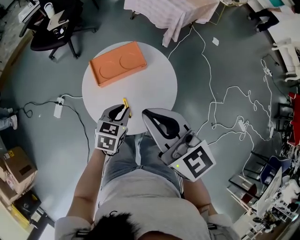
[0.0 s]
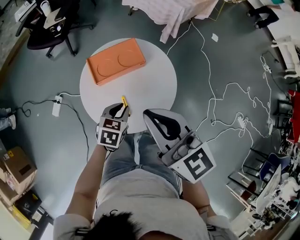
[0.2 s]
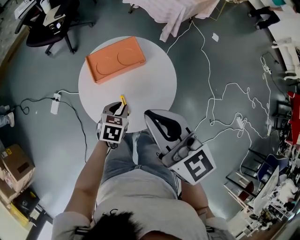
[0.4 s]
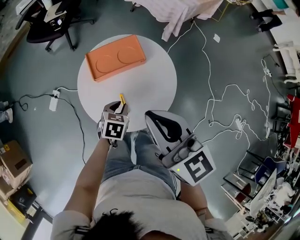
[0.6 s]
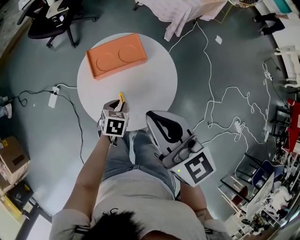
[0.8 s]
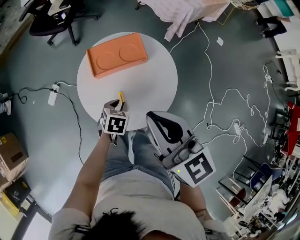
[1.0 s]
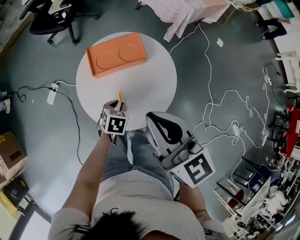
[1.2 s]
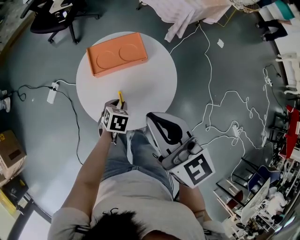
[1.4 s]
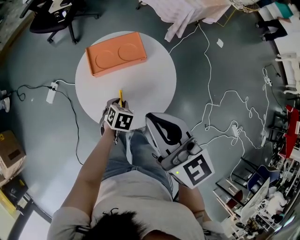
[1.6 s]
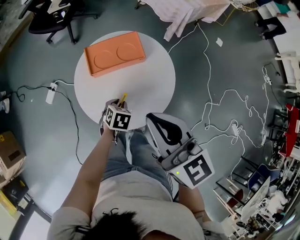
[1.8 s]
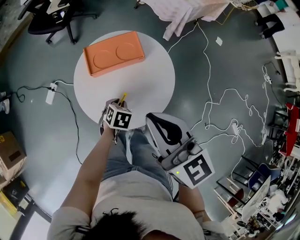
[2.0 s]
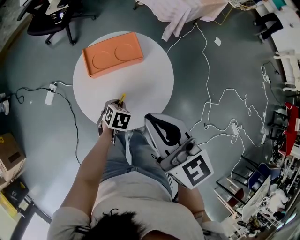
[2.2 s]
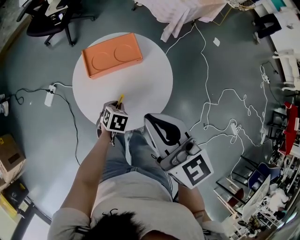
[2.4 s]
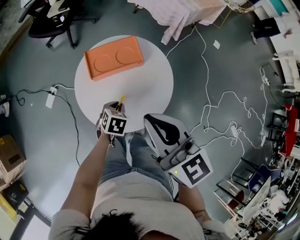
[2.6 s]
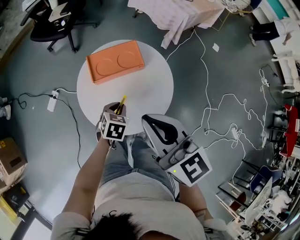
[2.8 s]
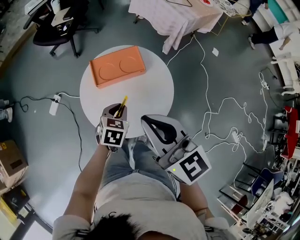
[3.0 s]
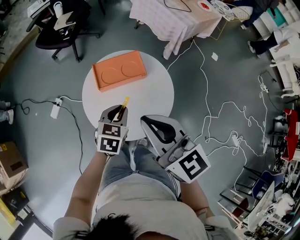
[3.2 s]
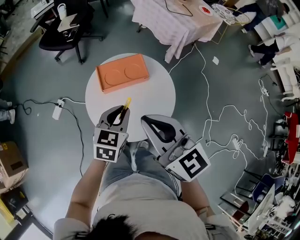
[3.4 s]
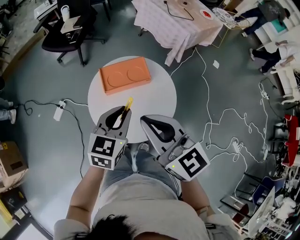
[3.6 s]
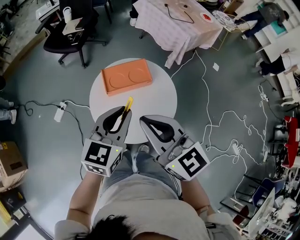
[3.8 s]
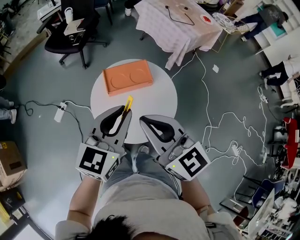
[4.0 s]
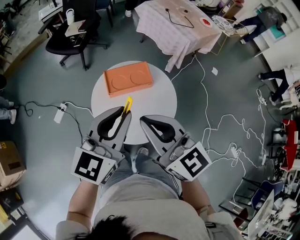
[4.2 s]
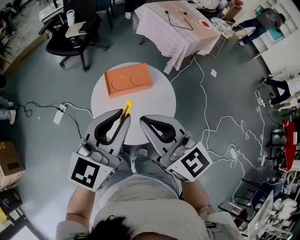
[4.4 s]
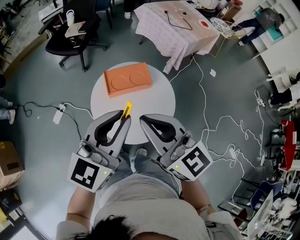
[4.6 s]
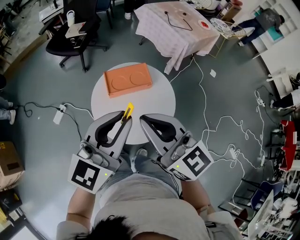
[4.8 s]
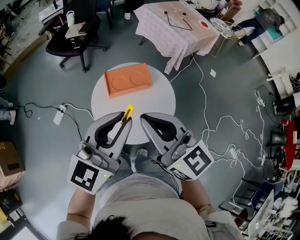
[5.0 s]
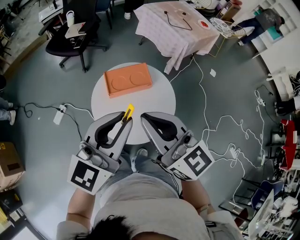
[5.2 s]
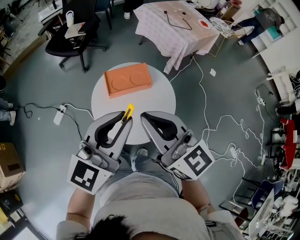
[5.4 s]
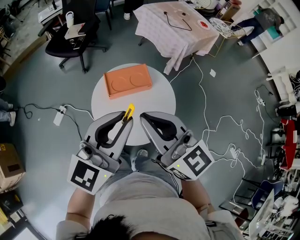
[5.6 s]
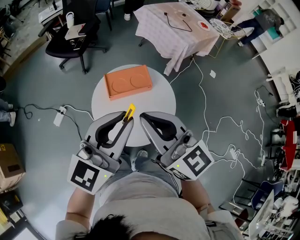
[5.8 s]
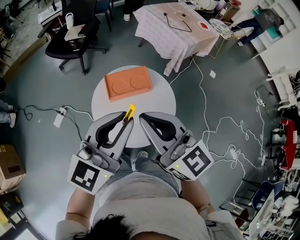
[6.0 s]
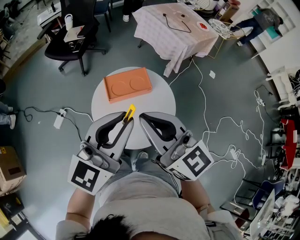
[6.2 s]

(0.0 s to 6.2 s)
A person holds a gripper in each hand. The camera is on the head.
0.0 s - 1.6 s: The left gripper goes roughly 10 cm downward, and turns by some 20 degrees.
1.6 s - 3.2 s: The left gripper goes some 15 cm upward, and changes its angle by roughly 20 degrees.
3.2 s - 4.6 s: The left gripper goes roughly 25 cm upward, and angles its fingers upward, by about 40 degrees; the right gripper shifts some 5 cm upward.
4.6 s - 6.2 s: The grippers stay close to where they were, moving slightly.

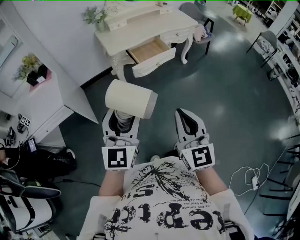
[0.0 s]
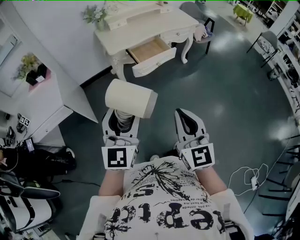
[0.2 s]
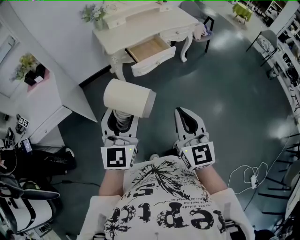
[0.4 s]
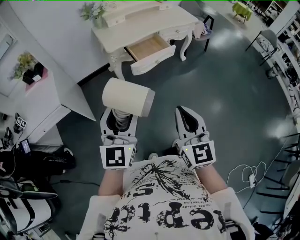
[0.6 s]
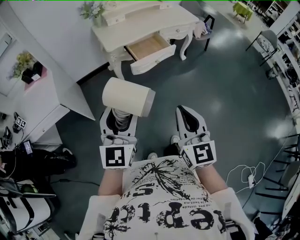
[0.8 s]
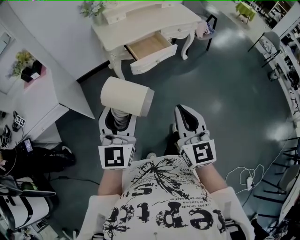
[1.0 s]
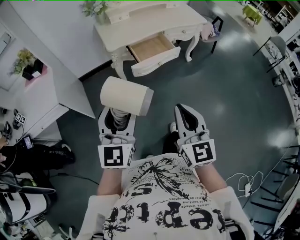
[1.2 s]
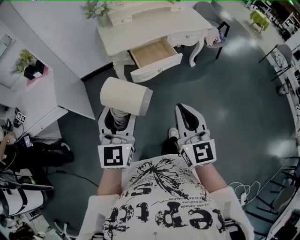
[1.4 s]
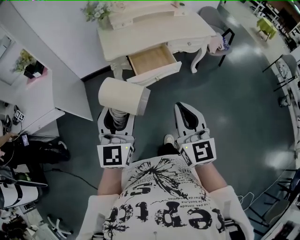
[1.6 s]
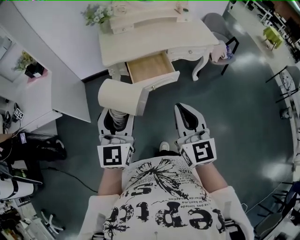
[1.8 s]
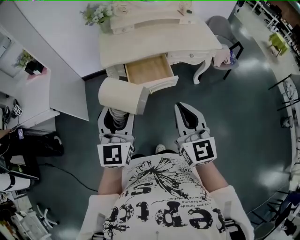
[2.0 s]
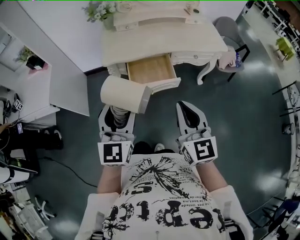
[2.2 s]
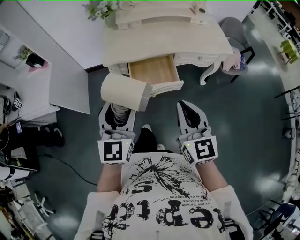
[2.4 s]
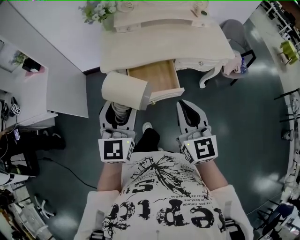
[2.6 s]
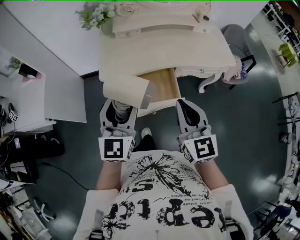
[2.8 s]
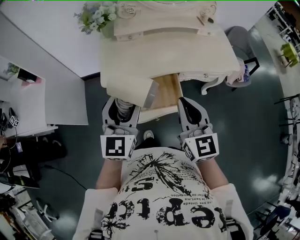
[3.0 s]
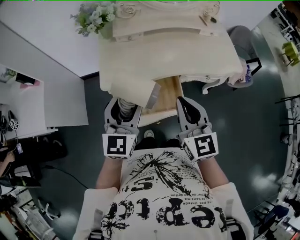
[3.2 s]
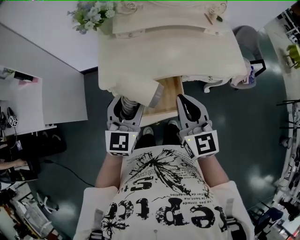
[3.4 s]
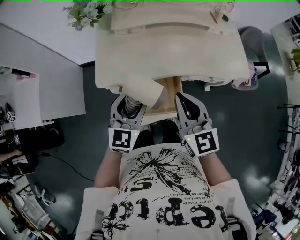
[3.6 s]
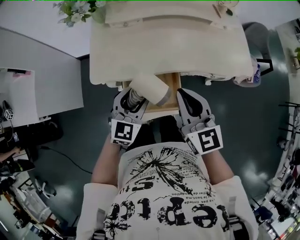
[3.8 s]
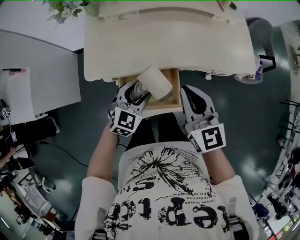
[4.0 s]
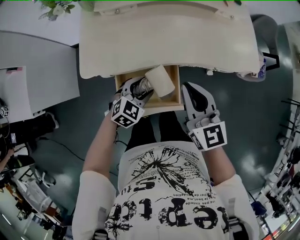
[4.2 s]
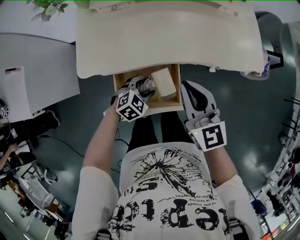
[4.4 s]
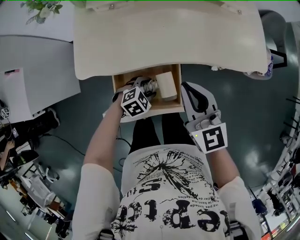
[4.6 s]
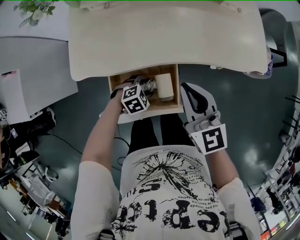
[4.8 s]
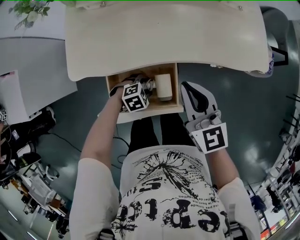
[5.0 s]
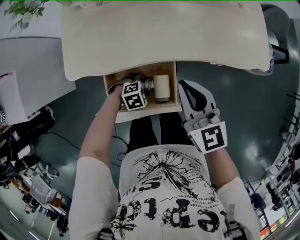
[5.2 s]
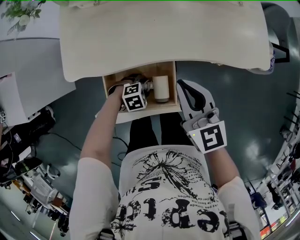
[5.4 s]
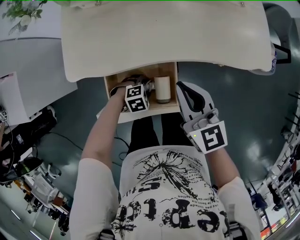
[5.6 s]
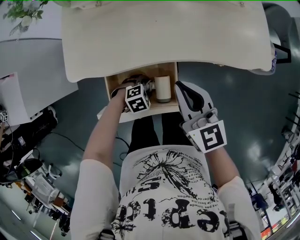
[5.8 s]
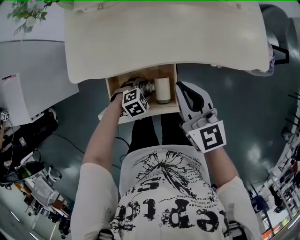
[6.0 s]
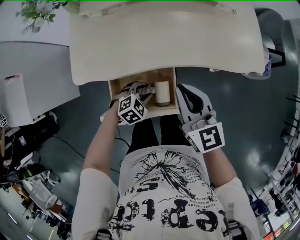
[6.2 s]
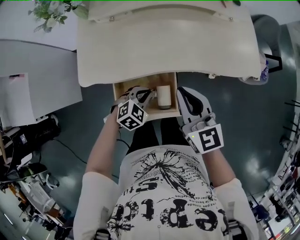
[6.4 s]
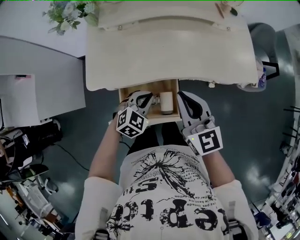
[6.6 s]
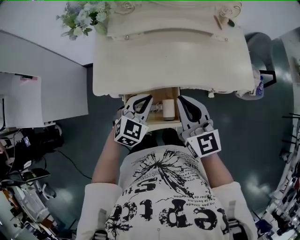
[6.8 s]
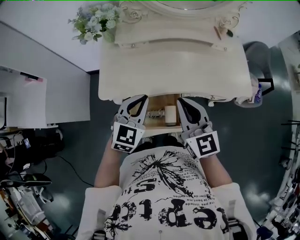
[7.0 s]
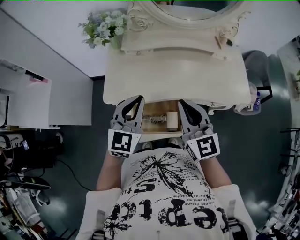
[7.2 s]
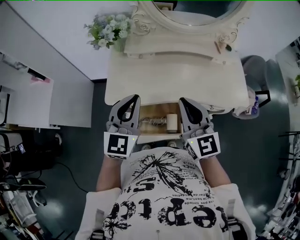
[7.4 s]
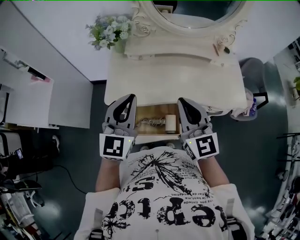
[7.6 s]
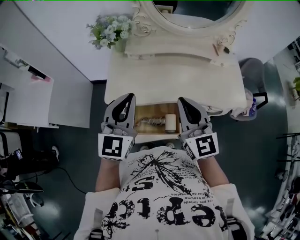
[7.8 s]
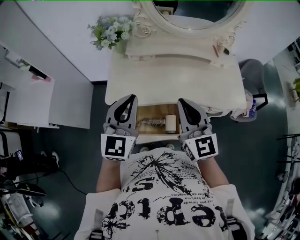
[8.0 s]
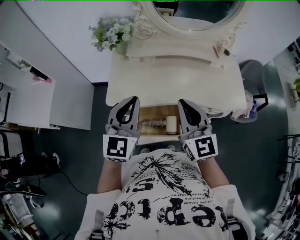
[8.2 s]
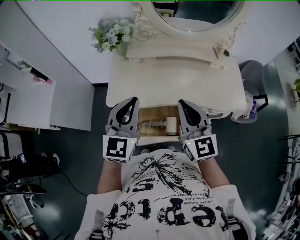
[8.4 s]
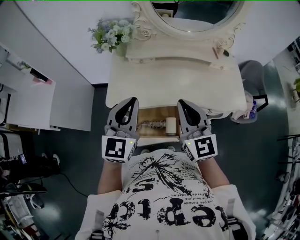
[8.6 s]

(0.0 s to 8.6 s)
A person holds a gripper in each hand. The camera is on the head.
0.0 s - 1.4 s: The two grippers go some 15 cm forward.
1.4 s - 2.8 s: The two grippers go approximately 35 cm forward and to the right.
2.8 s - 4.4 s: The left gripper is displaced downward and forward by approximately 35 cm, and tilts its fingers some 50 degrees downward, while the right gripper heads forward and downward, covering approximately 25 cm.
4.4 s - 5.8 s: The left gripper travels downward by approximately 10 cm, and rotates some 30 degrees; the right gripper is displaced downward by approximately 5 cm.
5.8 s - 7.2 s: The right gripper moves upward, roughly 15 cm. Meanwhile the left gripper moves upward, approximately 40 cm, points its fingers approximately 60 degrees further upward, and closes its fingers.
7.2 s - 8.6 s: The left gripper heads upward, covering approximately 5 cm.

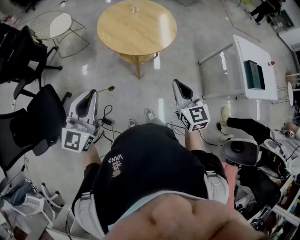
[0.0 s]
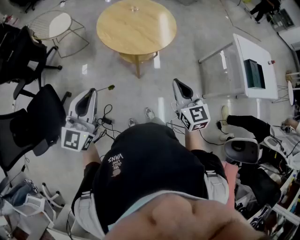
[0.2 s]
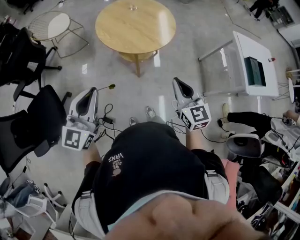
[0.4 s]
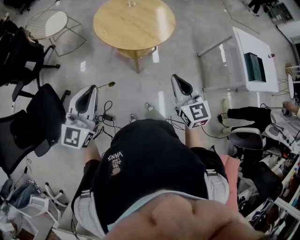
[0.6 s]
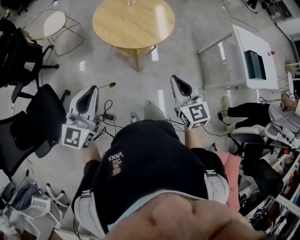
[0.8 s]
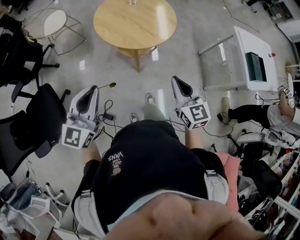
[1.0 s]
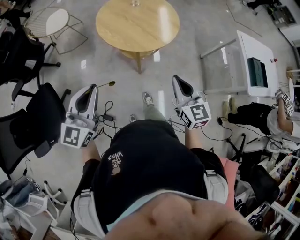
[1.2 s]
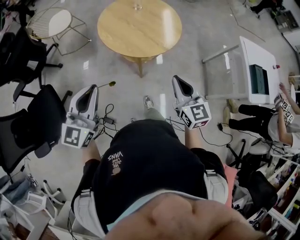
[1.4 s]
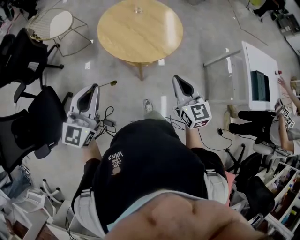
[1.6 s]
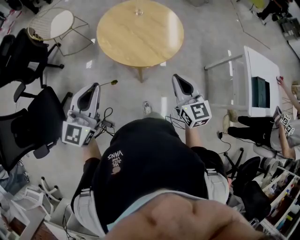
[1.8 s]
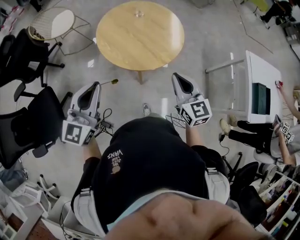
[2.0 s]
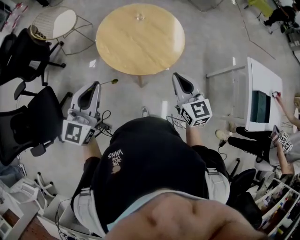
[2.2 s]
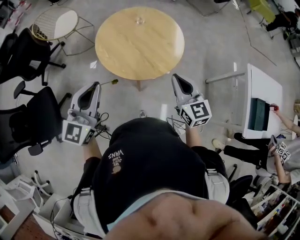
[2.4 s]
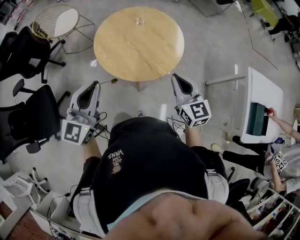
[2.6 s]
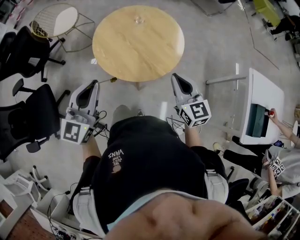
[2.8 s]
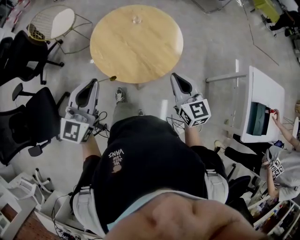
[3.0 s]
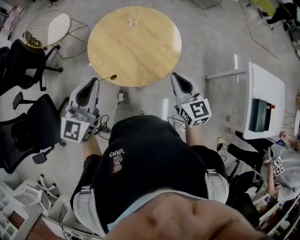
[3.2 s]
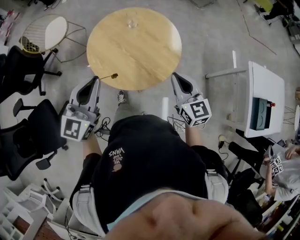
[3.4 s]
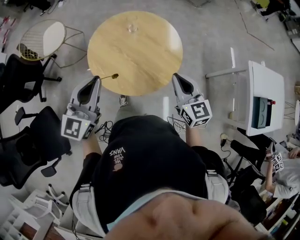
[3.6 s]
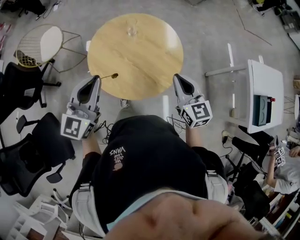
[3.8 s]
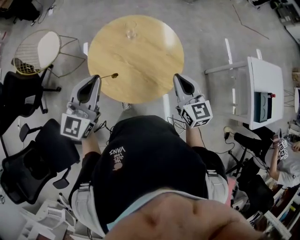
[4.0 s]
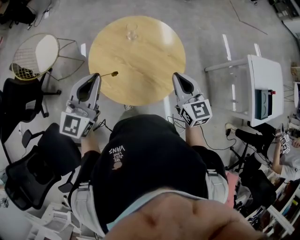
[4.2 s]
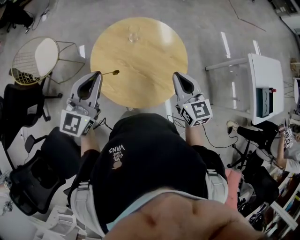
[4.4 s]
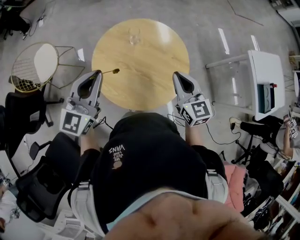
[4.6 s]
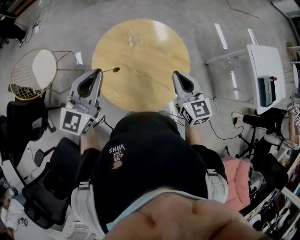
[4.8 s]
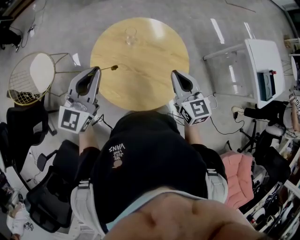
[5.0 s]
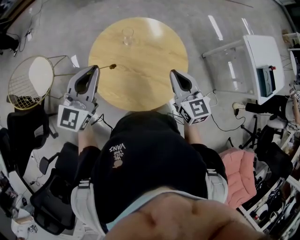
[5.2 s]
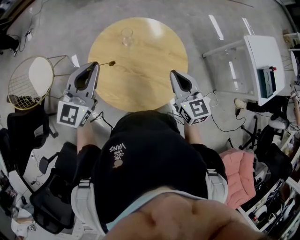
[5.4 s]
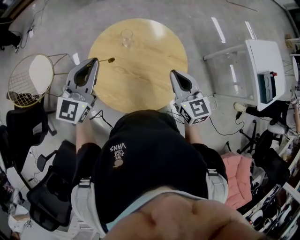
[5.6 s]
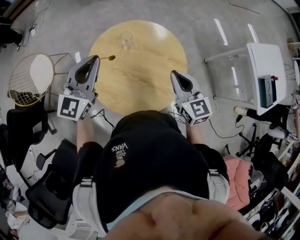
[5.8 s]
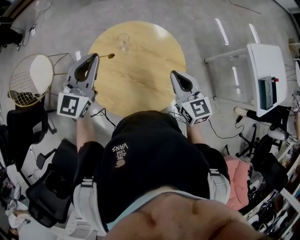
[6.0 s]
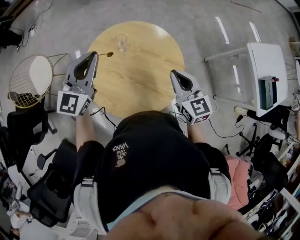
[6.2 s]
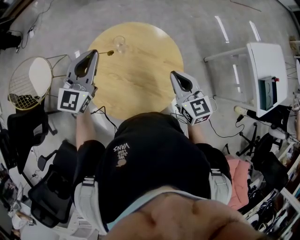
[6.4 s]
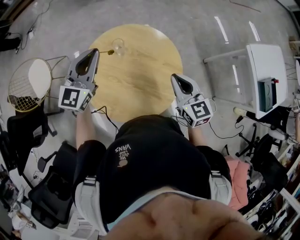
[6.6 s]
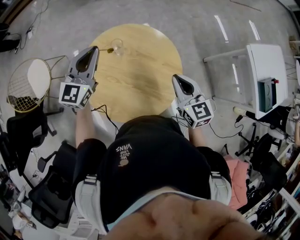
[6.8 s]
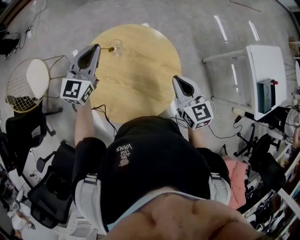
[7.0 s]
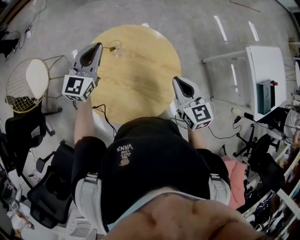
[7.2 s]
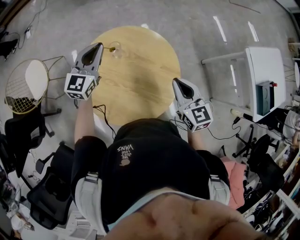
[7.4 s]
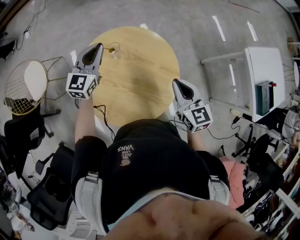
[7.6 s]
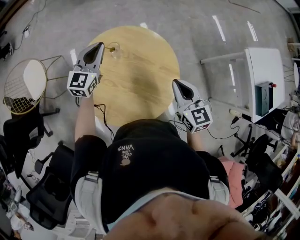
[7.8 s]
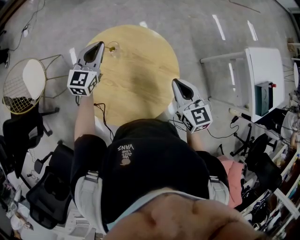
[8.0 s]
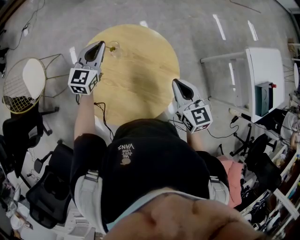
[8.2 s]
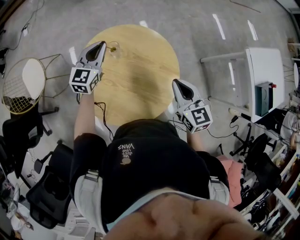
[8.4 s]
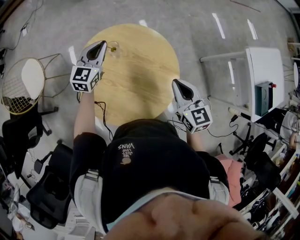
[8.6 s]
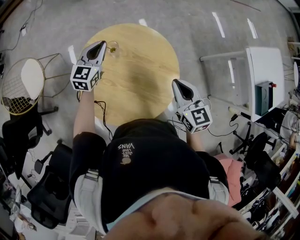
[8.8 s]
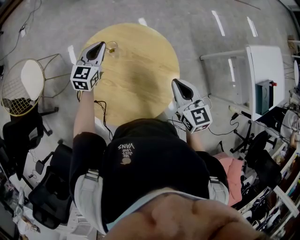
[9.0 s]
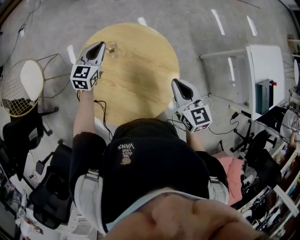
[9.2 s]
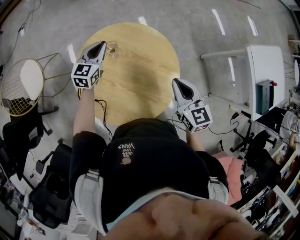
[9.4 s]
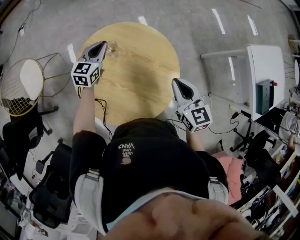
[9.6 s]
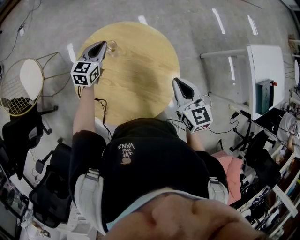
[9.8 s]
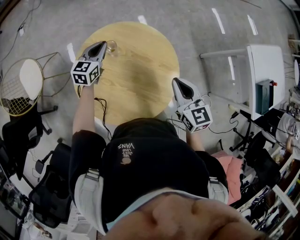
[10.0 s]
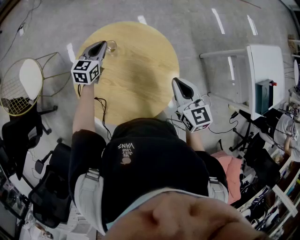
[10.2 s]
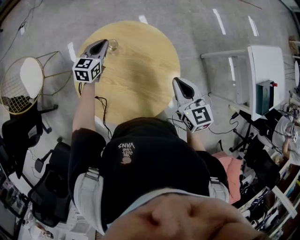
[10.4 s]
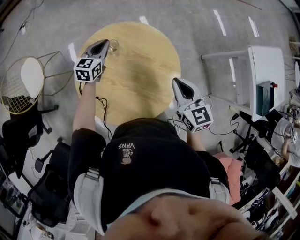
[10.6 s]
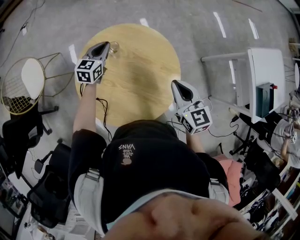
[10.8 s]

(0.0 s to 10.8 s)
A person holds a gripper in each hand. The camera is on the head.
0.0 s - 1.6 s: The grippers both shift forward by about 10 cm.
1.6 s - 3.0 s: The grippers both shift forward and to the right by about 20 cm.
3.0 s - 4.6 s: Both grippers move forward and to the left, some 25 cm. The left gripper swivels approximately 20 degrees. Meanwhile the right gripper swivels approximately 20 degrees.
4.6 s - 6.2 s: The right gripper shifts some 5 cm forward, while the left gripper is displaced forward by approximately 15 cm.
6.2 s - 7.8 s: The left gripper goes roughly 15 cm forward and downward, while the right gripper shifts by some 5 cm.
7.8 s - 9.2 s: The left gripper goes some 10 cm downward.
9.2 s - 10.8 s: The grippers make only small movements.
